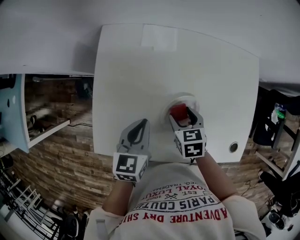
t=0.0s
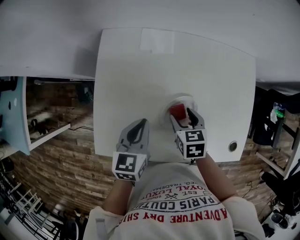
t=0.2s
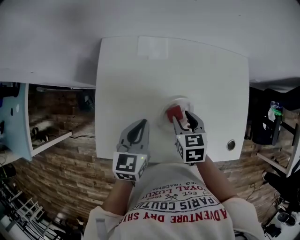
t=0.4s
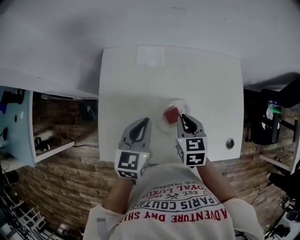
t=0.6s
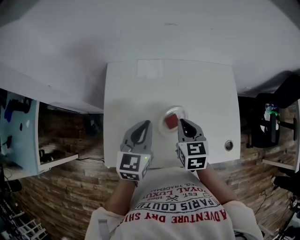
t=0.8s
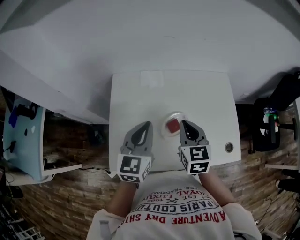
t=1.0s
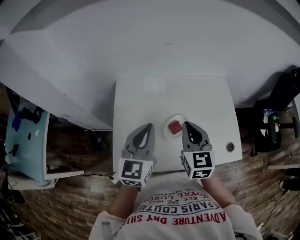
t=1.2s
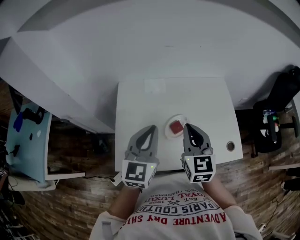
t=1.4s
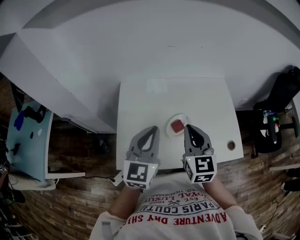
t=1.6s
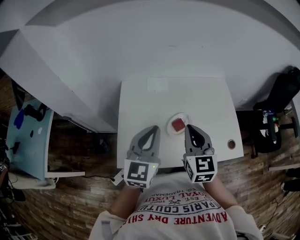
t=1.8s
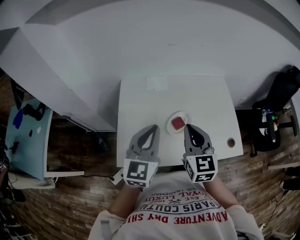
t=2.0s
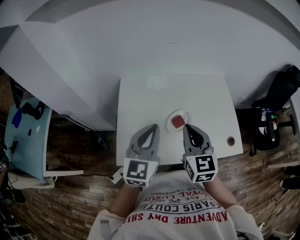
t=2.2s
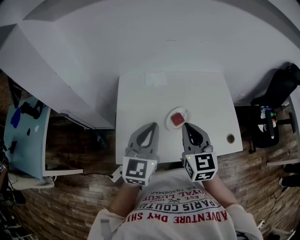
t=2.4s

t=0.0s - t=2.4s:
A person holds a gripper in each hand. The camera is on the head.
t=0.0s - t=1.2s: Both grippers travel together upward, roughly 20 cm. The right gripper points its fingers some 40 degrees further upward, and closes its fingers; the left gripper turns by roughly 30 degrees.
t=1.2s - t=2.4s: The two grippers go approximately 5 cm backward.

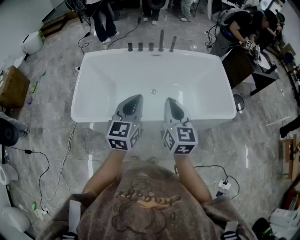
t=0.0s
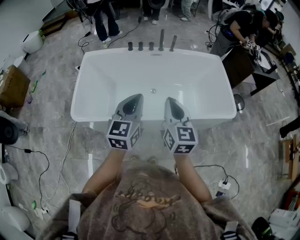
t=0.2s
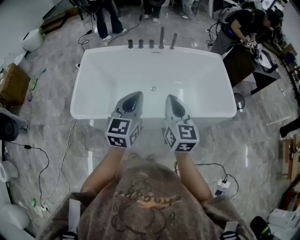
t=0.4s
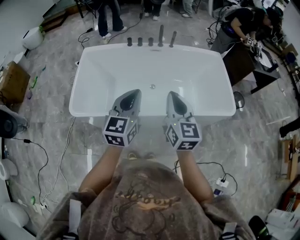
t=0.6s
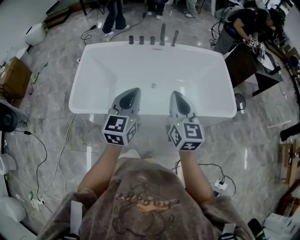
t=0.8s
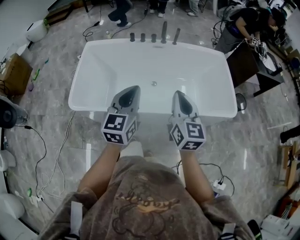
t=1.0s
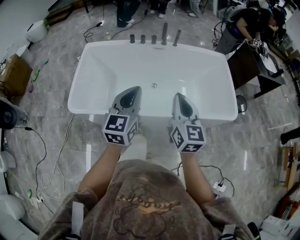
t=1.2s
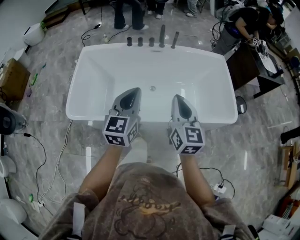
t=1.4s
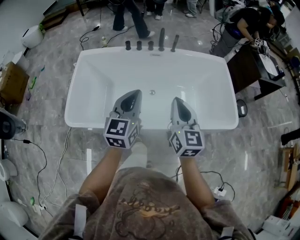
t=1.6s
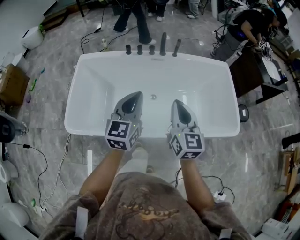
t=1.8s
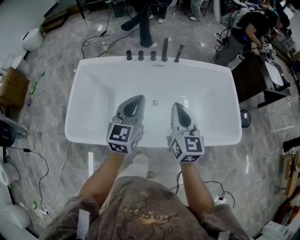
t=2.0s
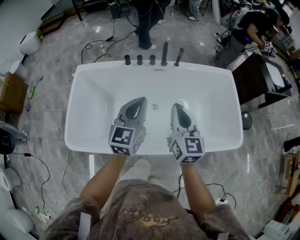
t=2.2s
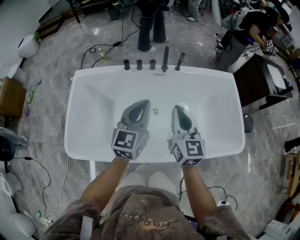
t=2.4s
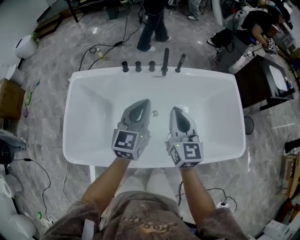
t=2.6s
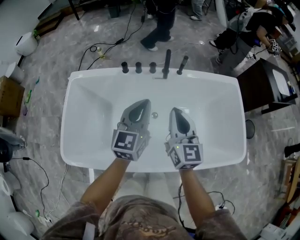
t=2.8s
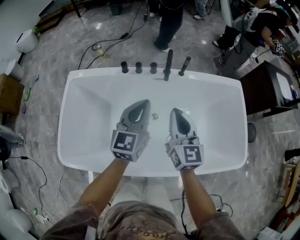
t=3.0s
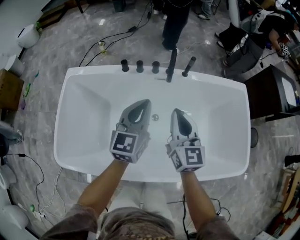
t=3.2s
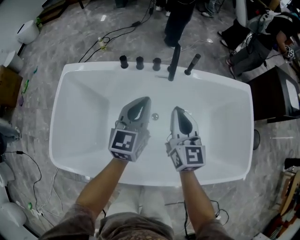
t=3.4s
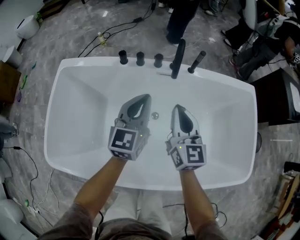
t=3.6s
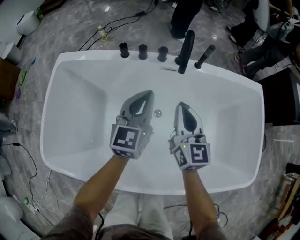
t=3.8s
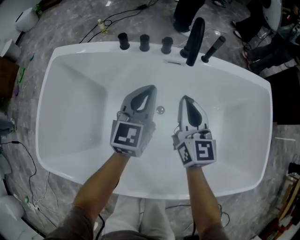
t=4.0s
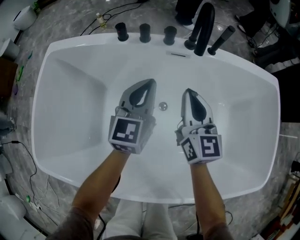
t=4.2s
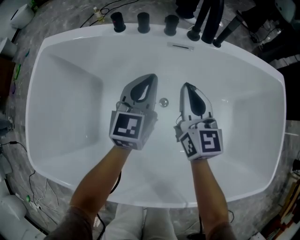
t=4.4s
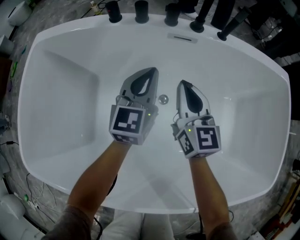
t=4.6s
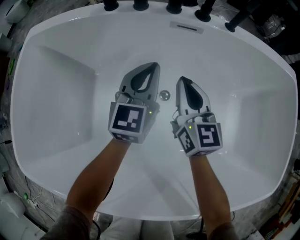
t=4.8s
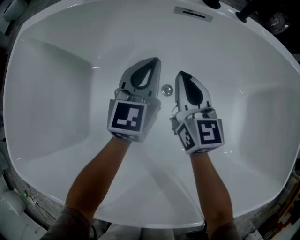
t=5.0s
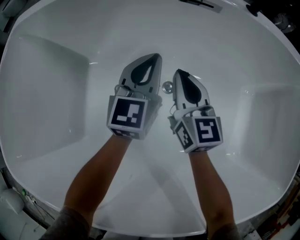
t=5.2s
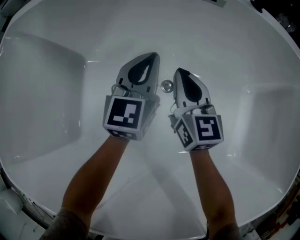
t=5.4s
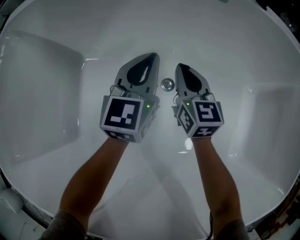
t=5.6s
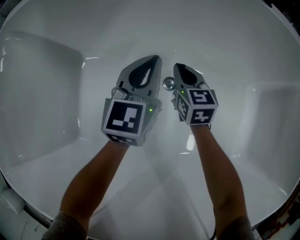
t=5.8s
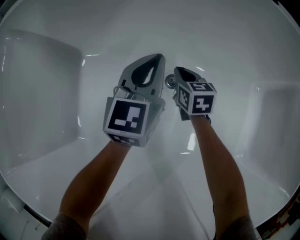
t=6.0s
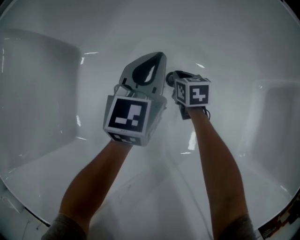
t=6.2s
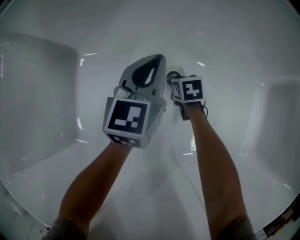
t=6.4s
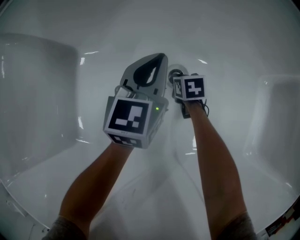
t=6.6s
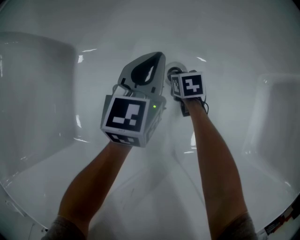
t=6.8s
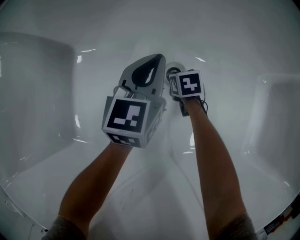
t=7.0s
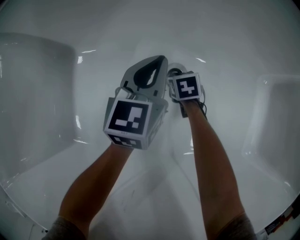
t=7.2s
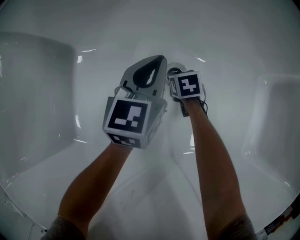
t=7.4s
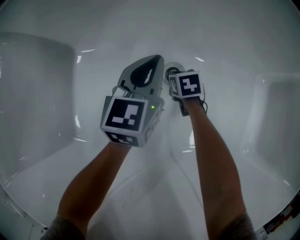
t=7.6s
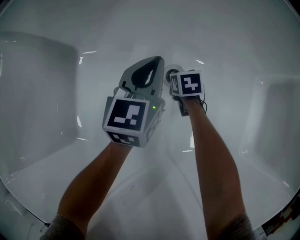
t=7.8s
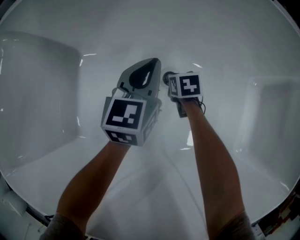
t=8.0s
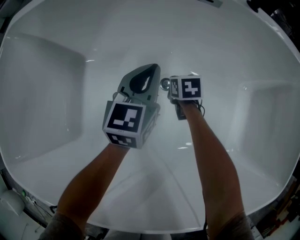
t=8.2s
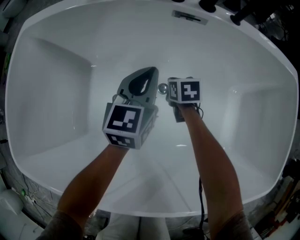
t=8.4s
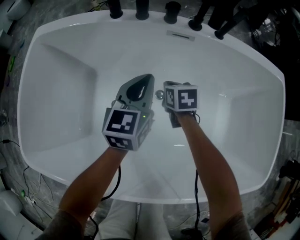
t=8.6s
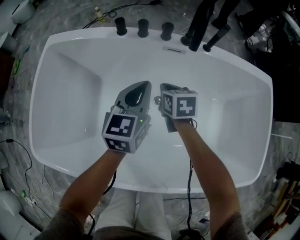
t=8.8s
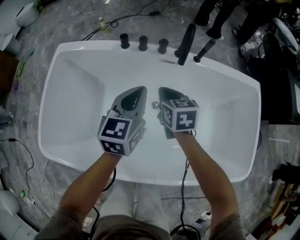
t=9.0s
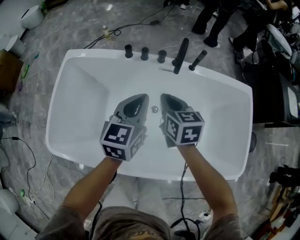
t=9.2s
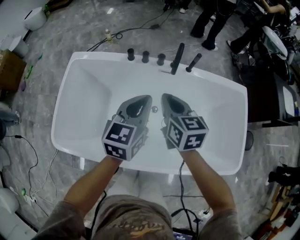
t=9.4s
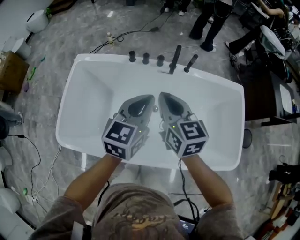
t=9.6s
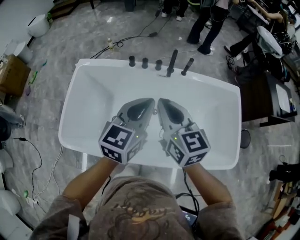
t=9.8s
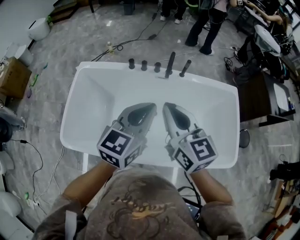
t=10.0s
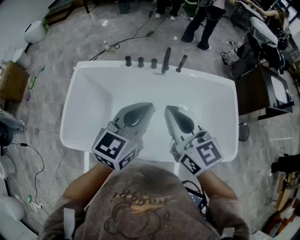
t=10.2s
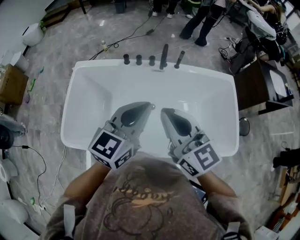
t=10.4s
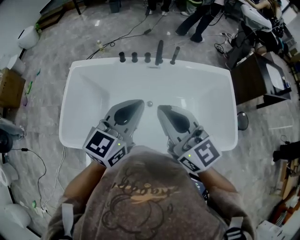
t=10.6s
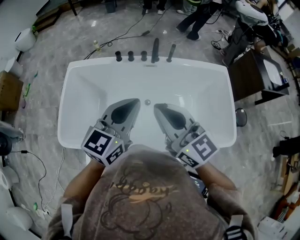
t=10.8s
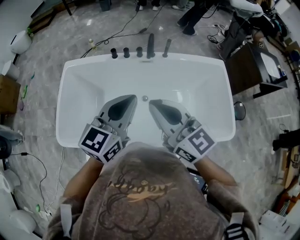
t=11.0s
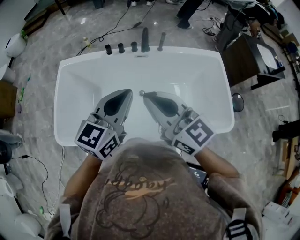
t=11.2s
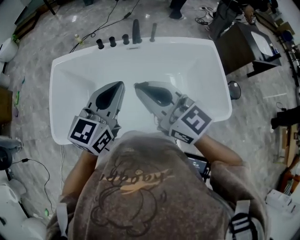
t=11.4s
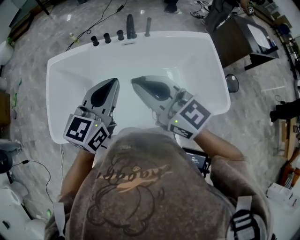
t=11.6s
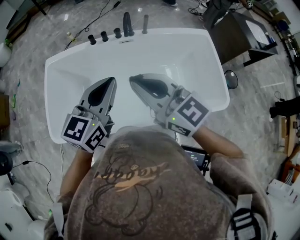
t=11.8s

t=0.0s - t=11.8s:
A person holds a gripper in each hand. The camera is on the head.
t=0.0s - t=1.4s: The left gripper goes roughly 5 cm forward, while the right gripper heads to the right and forward, covering roughly 10 cm.
t=1.4s - t=3.0s: Both grippers move forward, some 30 cm.
t=3.0s - t=4.4s: The right gripper shifts approximately 30 cm downward and forward, while the left gripper goes approximately 30 cm downward.
t=4.4s - t=6.0s: The right gripper goes some 40 cm downward, and angles its fingers downward, by roughly 30 degrees. The left gripper shifts some 25 cm downward.
t=6.0s - t=7.4s: The left gripper shifts about 5 cm downward; the right gripper shifts roughly 10 cm downward, and changes its angle by roughly 30 degrees.
t=7.4s - t=8.8s: Both grippers travel together upward, approximately 40 cm. The right gripper rotates some 20 degrees.
t=8.8s - t=10.4s: Both grippers move upward and backward, approximately 50 cm. The left gripper turns by approximately 20 degrees. The right gripper angles its fingers upward, by about 40 degrees.
t=10.4s - t=11.8s: Both grippers move backward, some 5 cm.

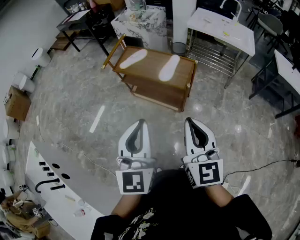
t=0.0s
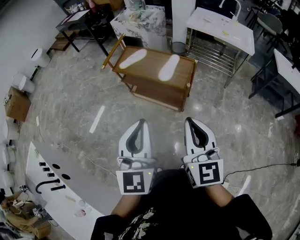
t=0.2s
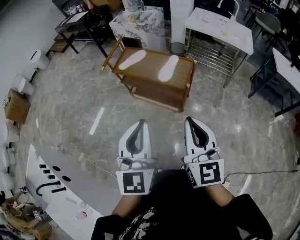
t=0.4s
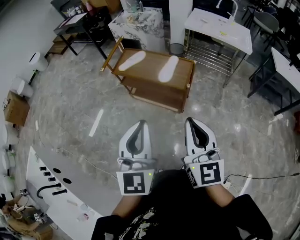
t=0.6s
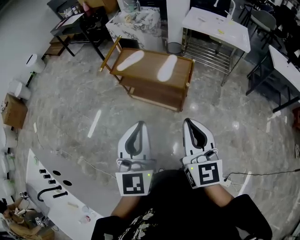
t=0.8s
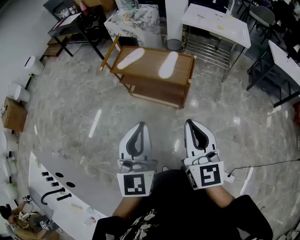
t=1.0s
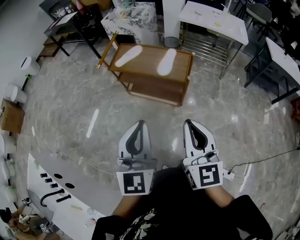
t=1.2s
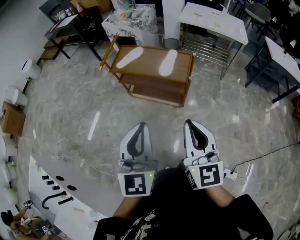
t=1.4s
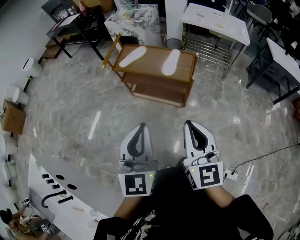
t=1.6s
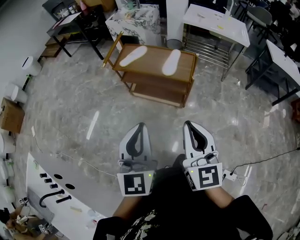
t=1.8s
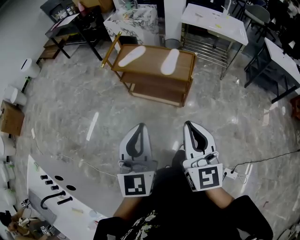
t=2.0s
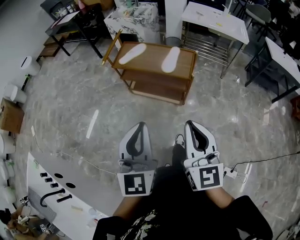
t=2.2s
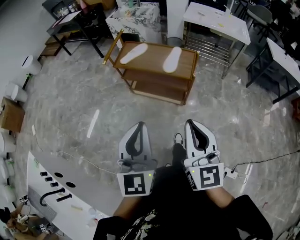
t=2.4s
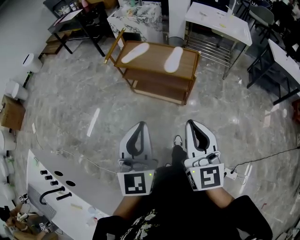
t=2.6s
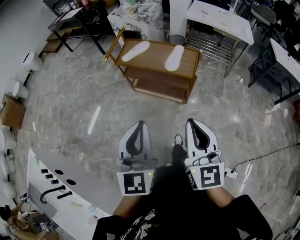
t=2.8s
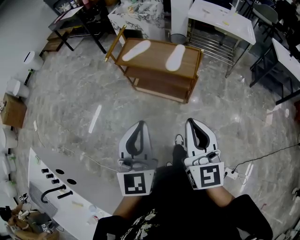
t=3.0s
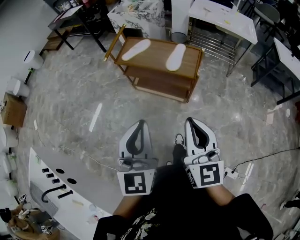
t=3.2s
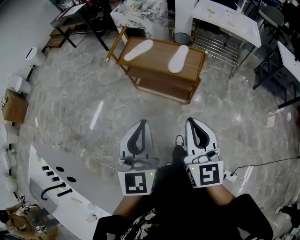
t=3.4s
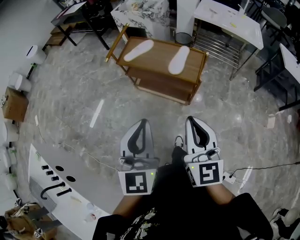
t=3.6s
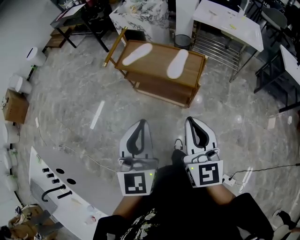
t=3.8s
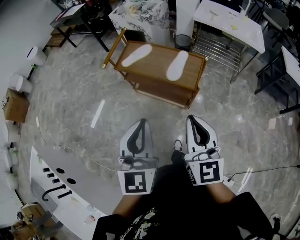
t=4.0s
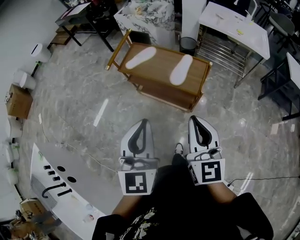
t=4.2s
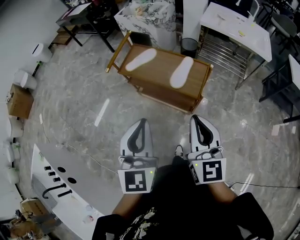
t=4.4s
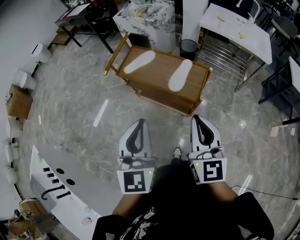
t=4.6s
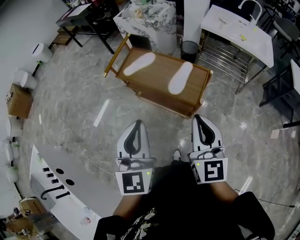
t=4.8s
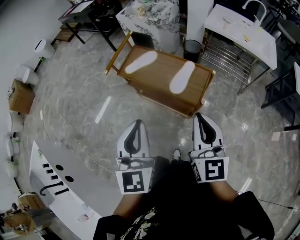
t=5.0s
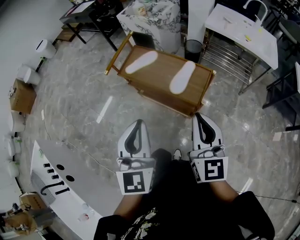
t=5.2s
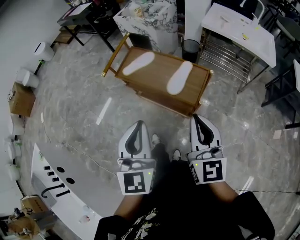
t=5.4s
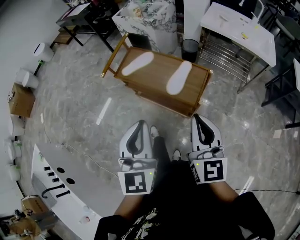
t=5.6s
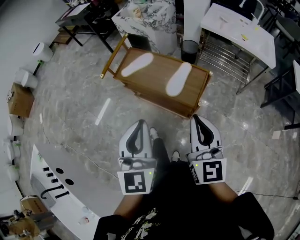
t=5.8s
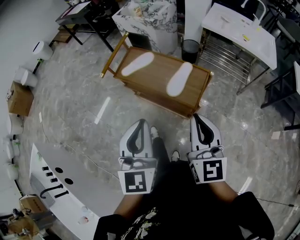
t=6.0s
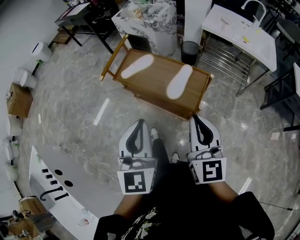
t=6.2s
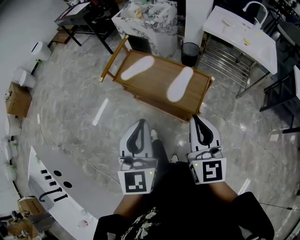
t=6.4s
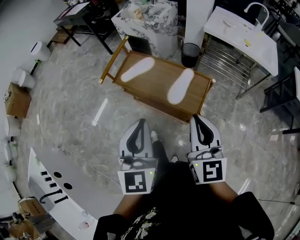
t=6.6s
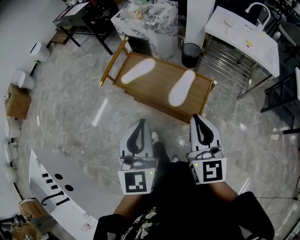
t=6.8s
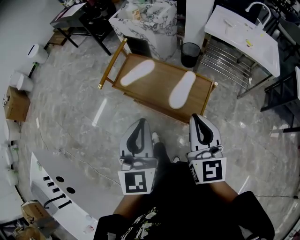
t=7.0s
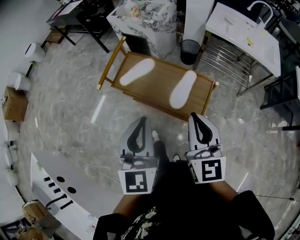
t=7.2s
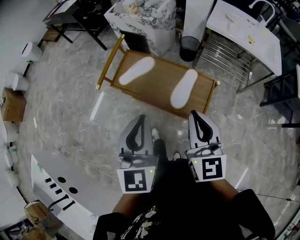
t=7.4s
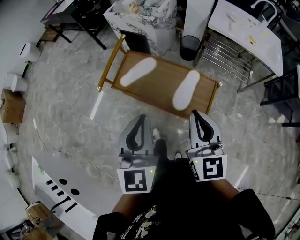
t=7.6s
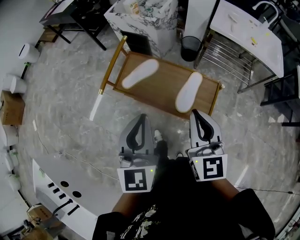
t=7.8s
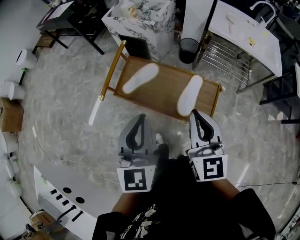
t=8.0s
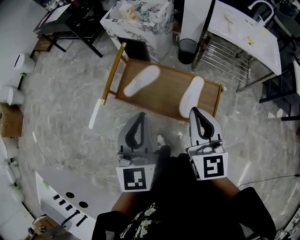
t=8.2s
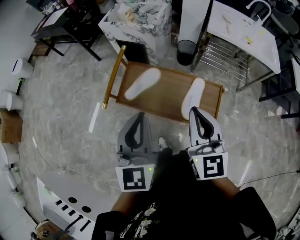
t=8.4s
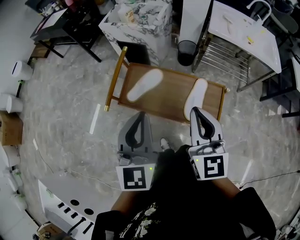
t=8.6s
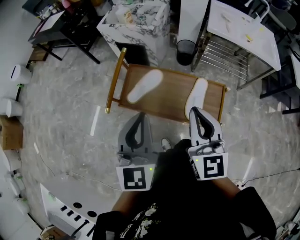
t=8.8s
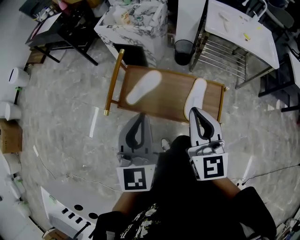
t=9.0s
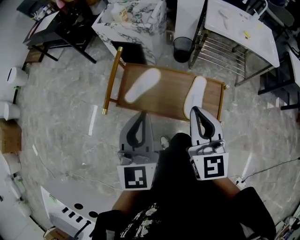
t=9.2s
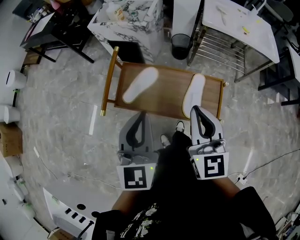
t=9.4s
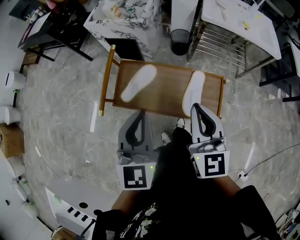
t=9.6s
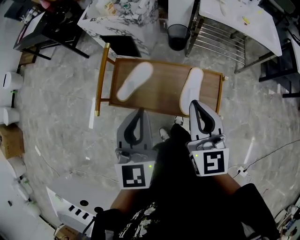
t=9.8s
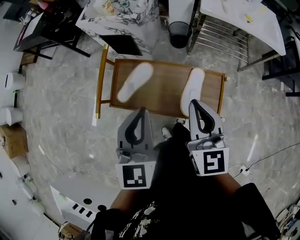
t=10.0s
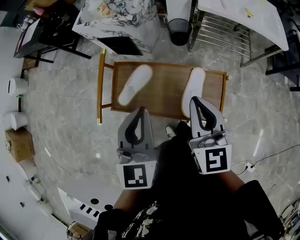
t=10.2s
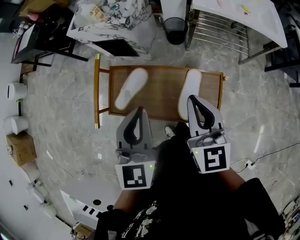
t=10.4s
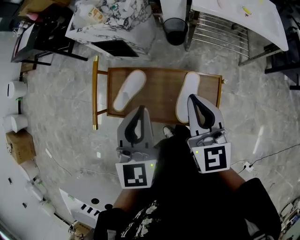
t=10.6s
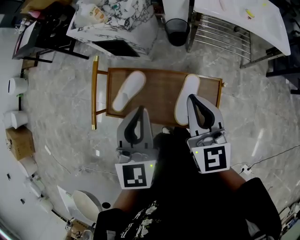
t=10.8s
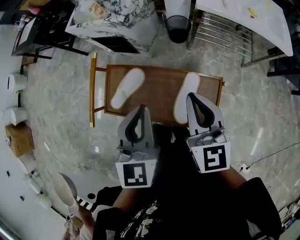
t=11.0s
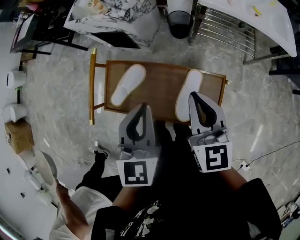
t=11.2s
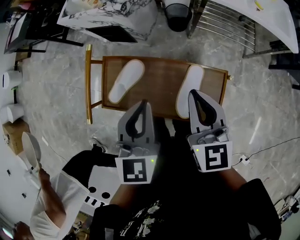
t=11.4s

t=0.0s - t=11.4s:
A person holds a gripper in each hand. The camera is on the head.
t=0.0s - t=1.4s: The two grippers go about 5 cm to the left.
t=1.4s - t=2.8s: The grippers make only small movements.
t=2.8s - t=4.2s: Both grippers move forward and to the right, roughly 15 cm.
t=4.2s - t=5.6s: The right gripper moves forward and to the right, approximately 10 cm. Meanwhile the left gripper goes roughly 5 cm forward.
t=5.6s - t=7.2s: Both grippers travel together forward, some 10 cm.
t=7.2s - t=8.6s: Both grippers move forward and to the left, about 15 cm.
t=8.6s - t=10.0s: The grippers both shift forward by approximately 5 cm.
t=10.0s - t=11.4s: The left gripper heads forward, to the right and downward, covering some 10 cm; the right gripper is displaced forward by roughly 10 cm.
